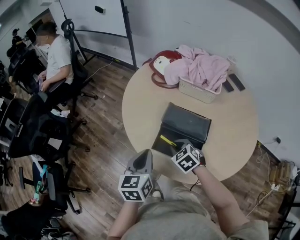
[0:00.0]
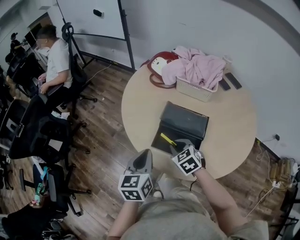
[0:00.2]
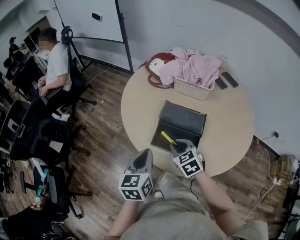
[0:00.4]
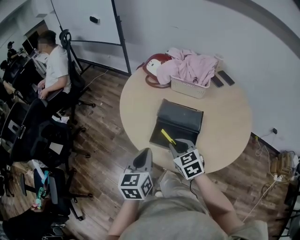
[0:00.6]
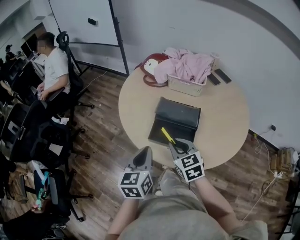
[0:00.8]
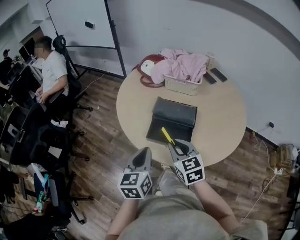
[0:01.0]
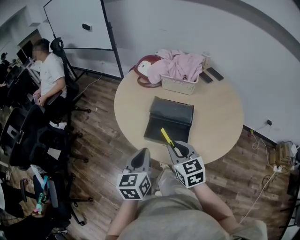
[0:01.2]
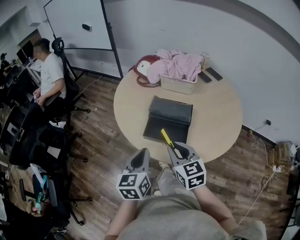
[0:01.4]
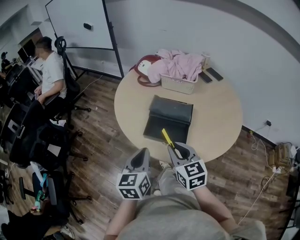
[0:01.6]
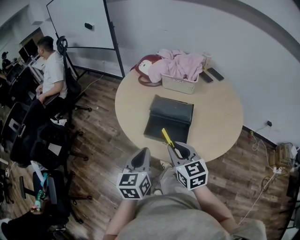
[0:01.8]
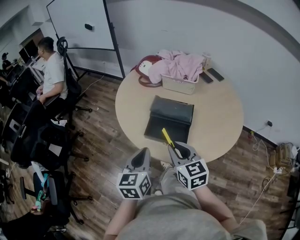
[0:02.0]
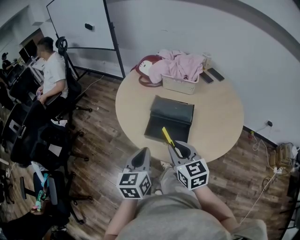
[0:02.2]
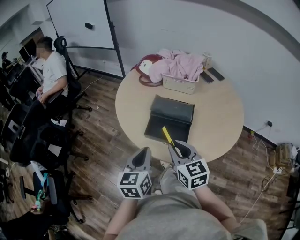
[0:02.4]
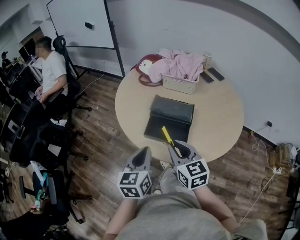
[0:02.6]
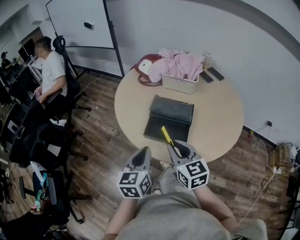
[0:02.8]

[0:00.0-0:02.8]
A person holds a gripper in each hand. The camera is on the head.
0:00.0 to 0:01.4: The left gripper travels backward by roughly 10 cm; the right gripper travels upward and backward by about 20 cm, and points its fingers about 30 degrees further upward.
0:01.4 to 0:02.8: There are only small adjustments of the grippers.

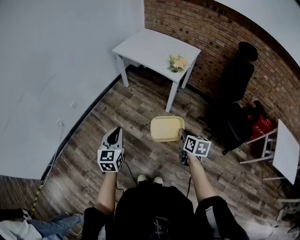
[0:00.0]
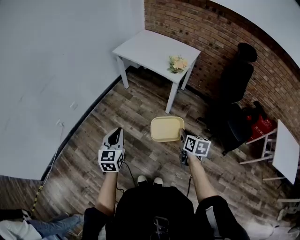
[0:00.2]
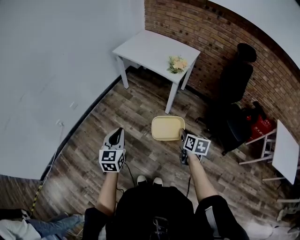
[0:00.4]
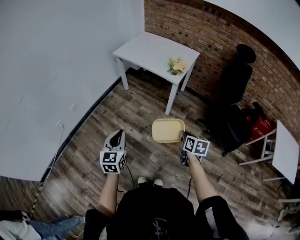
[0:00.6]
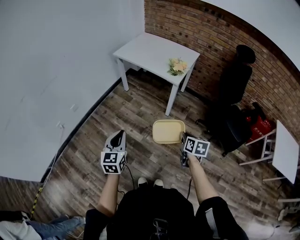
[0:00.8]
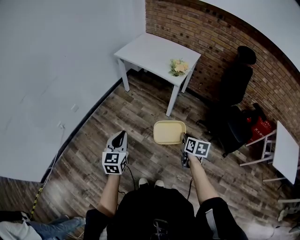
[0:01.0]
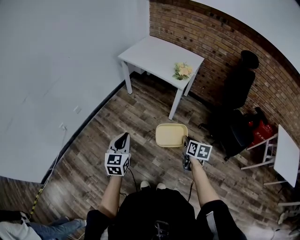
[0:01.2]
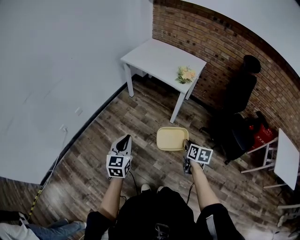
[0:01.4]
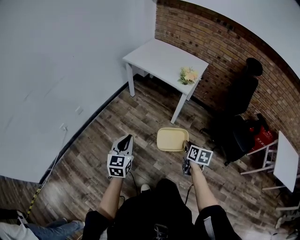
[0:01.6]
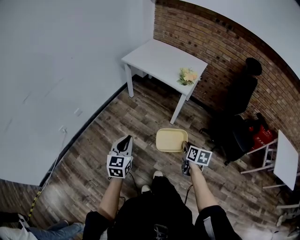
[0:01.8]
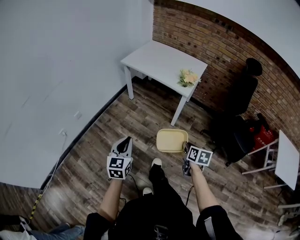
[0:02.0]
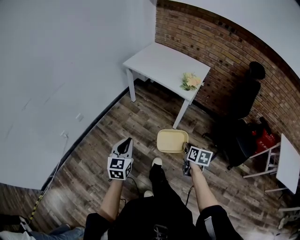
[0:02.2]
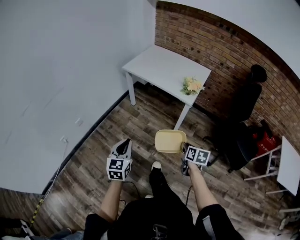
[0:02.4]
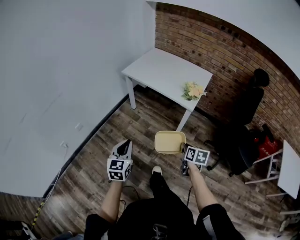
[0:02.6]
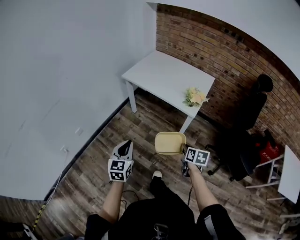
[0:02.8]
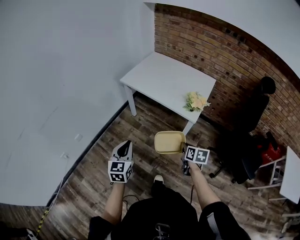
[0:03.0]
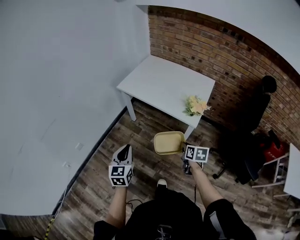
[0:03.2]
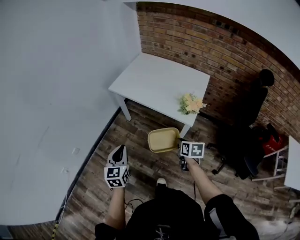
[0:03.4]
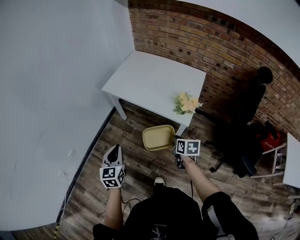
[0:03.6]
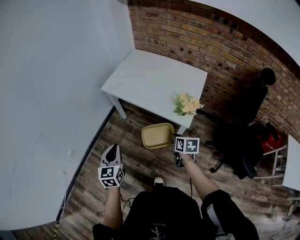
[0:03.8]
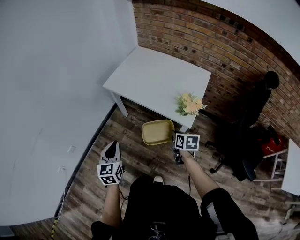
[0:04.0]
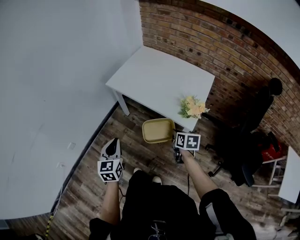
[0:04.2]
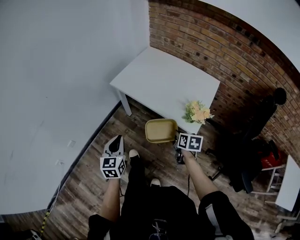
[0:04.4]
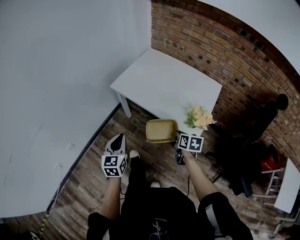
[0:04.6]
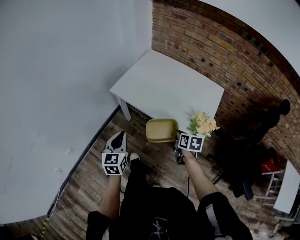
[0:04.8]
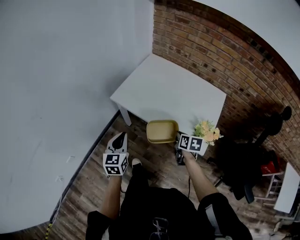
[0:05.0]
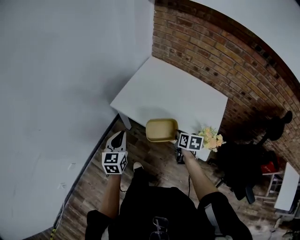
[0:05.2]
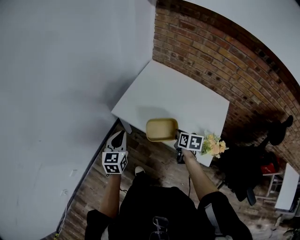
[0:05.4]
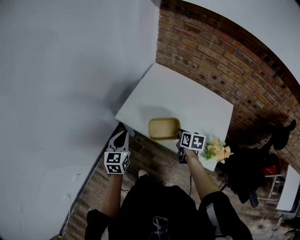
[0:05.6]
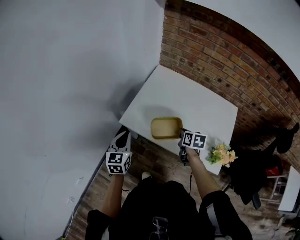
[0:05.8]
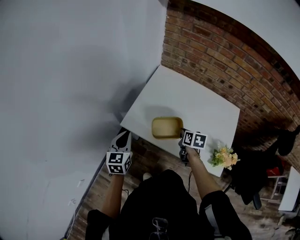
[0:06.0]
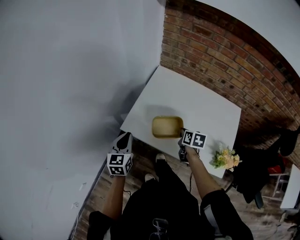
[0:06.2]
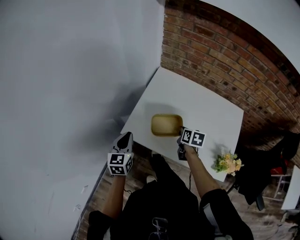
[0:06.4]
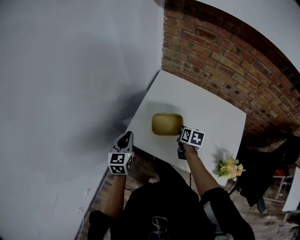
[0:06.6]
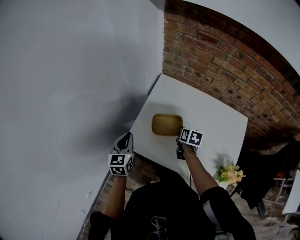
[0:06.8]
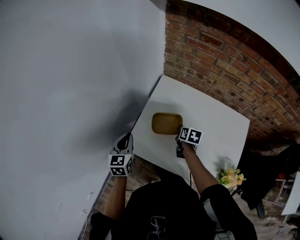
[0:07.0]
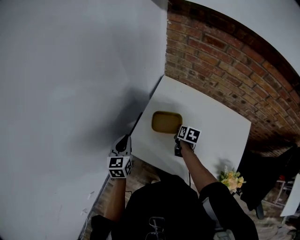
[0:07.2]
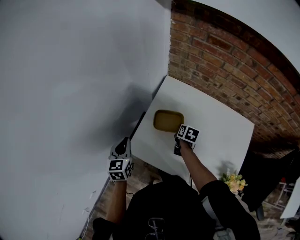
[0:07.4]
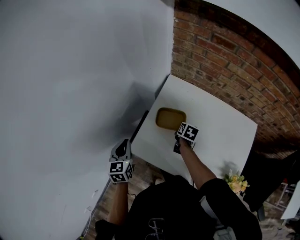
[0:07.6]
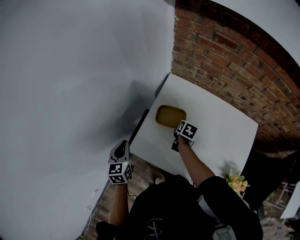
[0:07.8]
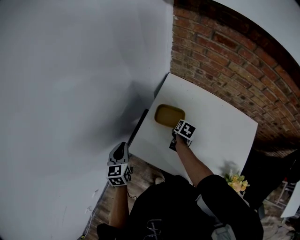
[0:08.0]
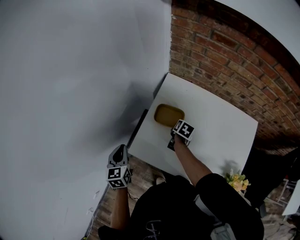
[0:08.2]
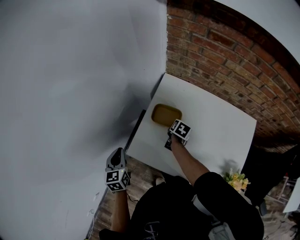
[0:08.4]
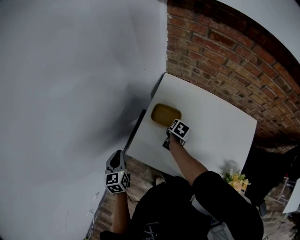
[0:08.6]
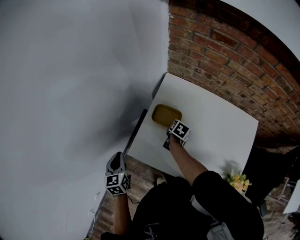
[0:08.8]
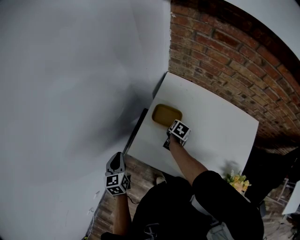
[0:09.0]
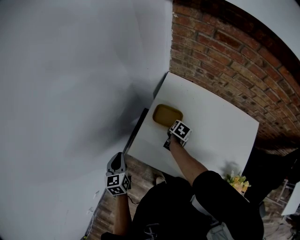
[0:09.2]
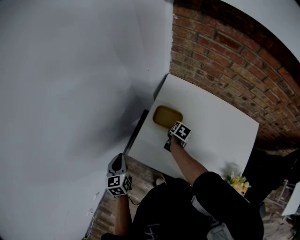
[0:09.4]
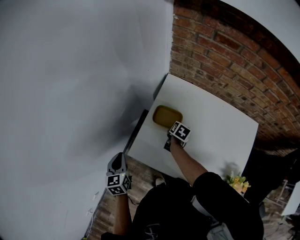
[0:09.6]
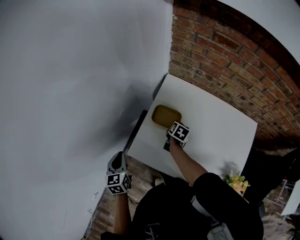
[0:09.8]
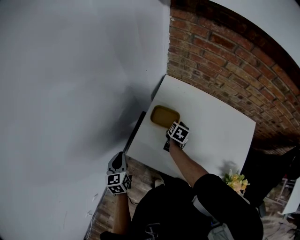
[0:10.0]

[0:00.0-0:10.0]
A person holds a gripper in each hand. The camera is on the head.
0:00.0 to 0:01.4: The grippers move only a little.
0:01.4 to 0:02.8: The grippers both shift forward by roughly 20 cm.
0:02.8 to 0:04.2: The two grippers go approximately 25 cm forward.
0:04.2 to 0:05.8: Both grippers move forward, about 40 cm.
0:05.8 to 0:07.2: Both grippers travel together forward, about 20 cm.
0:07.2 to 0:08.6: The left gripper moves to the left, about 5 cm; the right gripper moves downward, approximately 5 cm.
0:08.6 to 0:10.0: The grippers stay close to where they were, moving slightly.

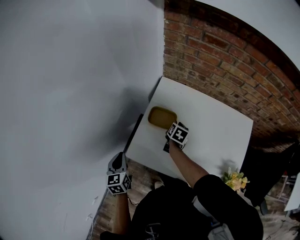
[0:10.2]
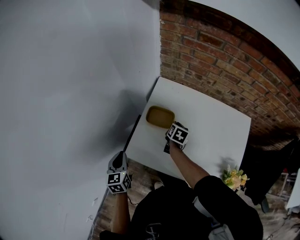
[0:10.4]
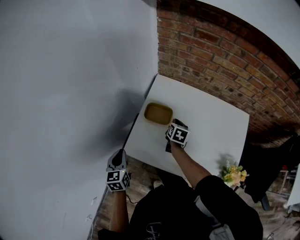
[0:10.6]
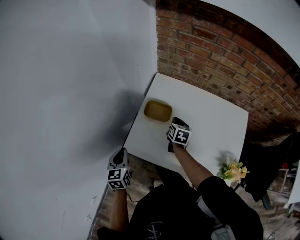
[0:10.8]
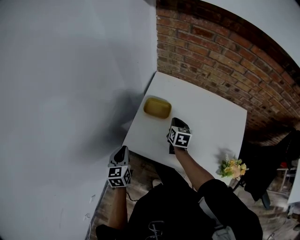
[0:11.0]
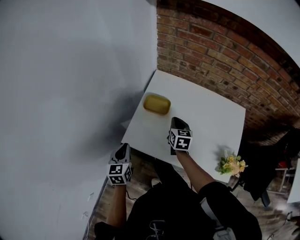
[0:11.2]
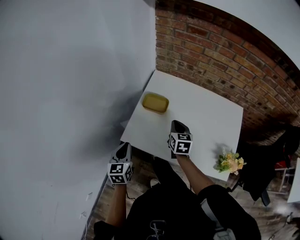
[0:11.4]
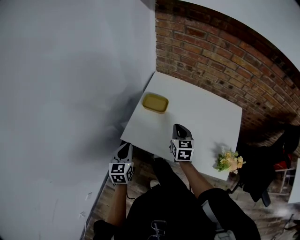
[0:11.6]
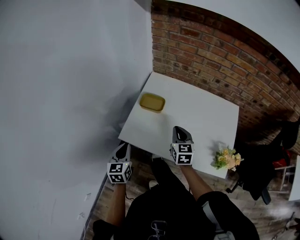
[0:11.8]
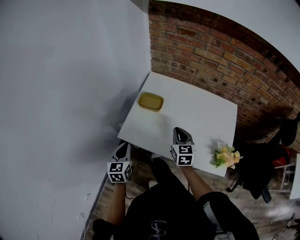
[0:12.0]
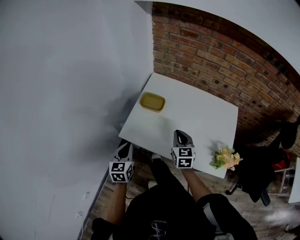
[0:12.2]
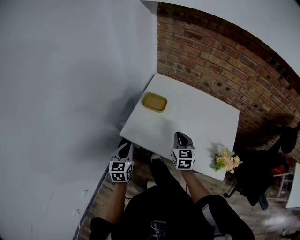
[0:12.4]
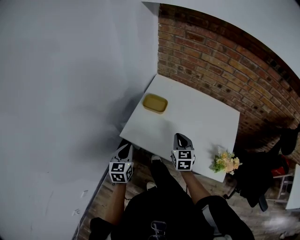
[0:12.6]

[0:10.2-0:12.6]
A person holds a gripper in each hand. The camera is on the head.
0:10.2 to 0:11.4: The right gripper moves backward and upward, about 15 cm, and changes its angle by about 30 degrees. Meanwhile the left gripper travels backward and to the right by about 10 cm.
0:11.4 to 0:12.6: The right gripper heads backward, covering approximately 10 cm. Meanwhile the left gripper travels backward by roughly 5 cm.

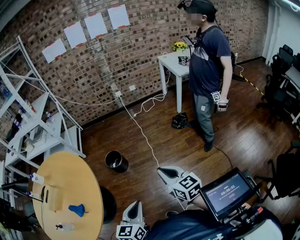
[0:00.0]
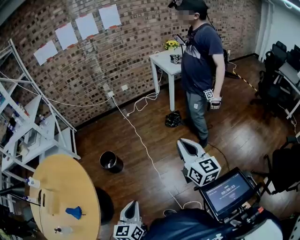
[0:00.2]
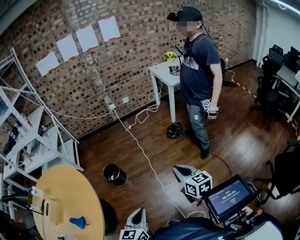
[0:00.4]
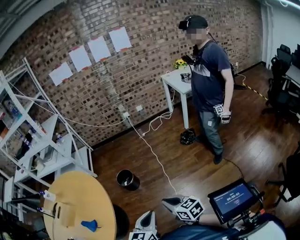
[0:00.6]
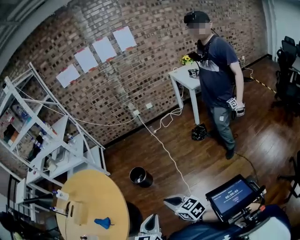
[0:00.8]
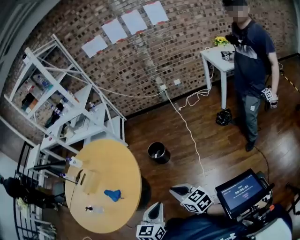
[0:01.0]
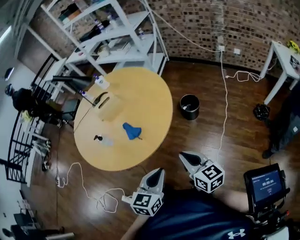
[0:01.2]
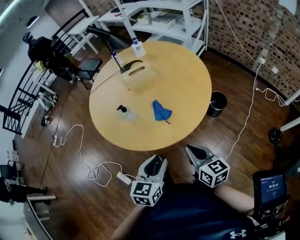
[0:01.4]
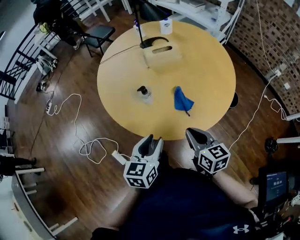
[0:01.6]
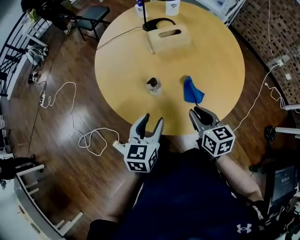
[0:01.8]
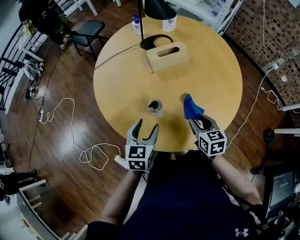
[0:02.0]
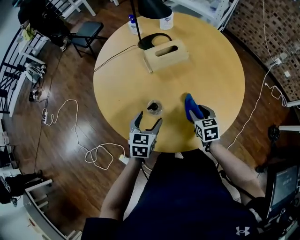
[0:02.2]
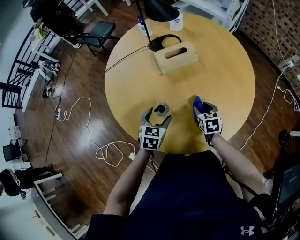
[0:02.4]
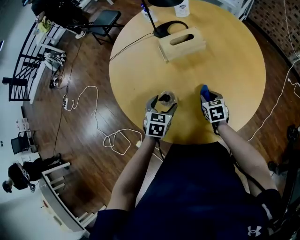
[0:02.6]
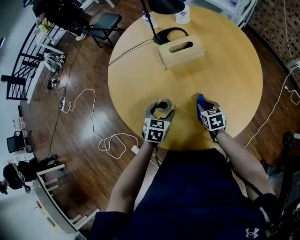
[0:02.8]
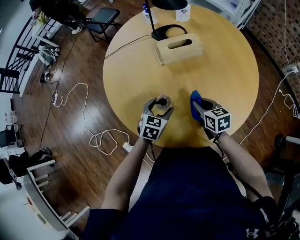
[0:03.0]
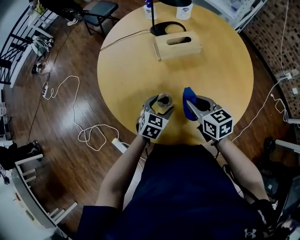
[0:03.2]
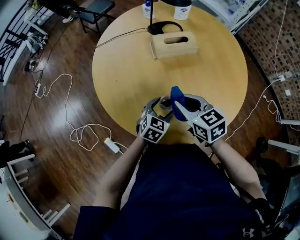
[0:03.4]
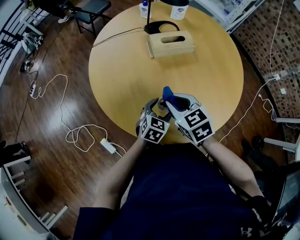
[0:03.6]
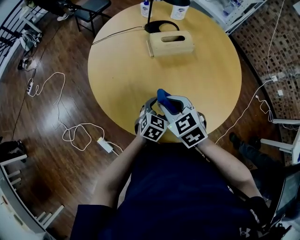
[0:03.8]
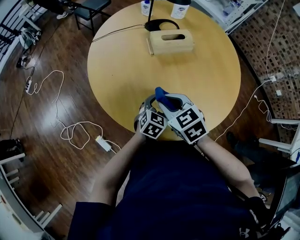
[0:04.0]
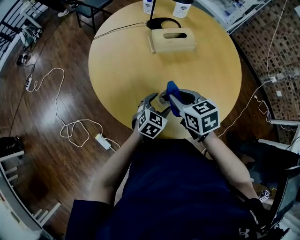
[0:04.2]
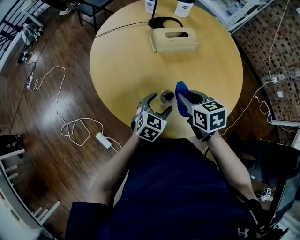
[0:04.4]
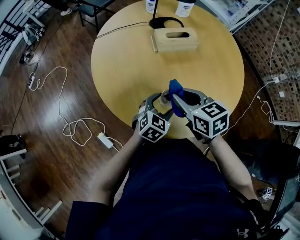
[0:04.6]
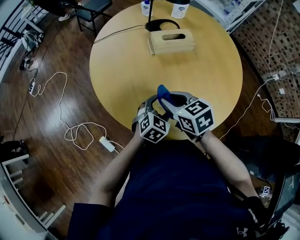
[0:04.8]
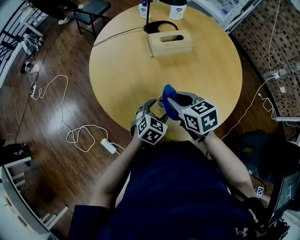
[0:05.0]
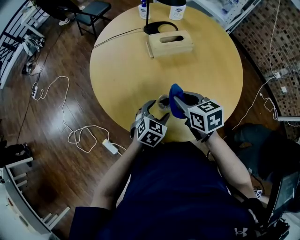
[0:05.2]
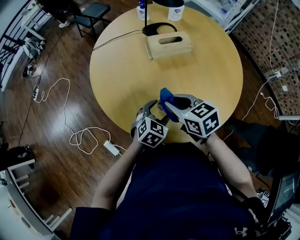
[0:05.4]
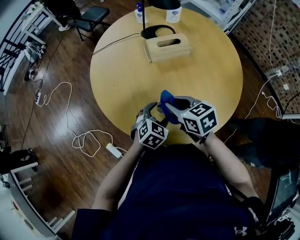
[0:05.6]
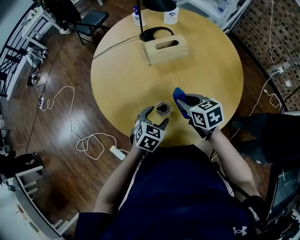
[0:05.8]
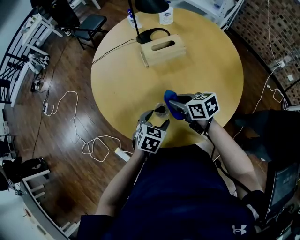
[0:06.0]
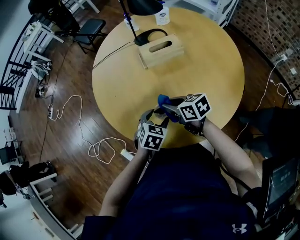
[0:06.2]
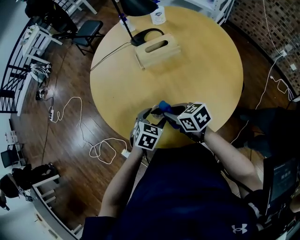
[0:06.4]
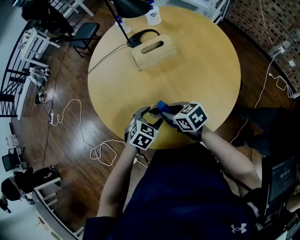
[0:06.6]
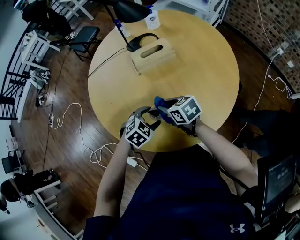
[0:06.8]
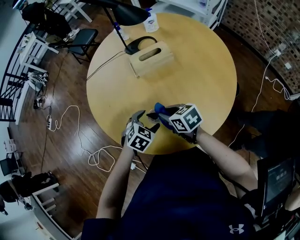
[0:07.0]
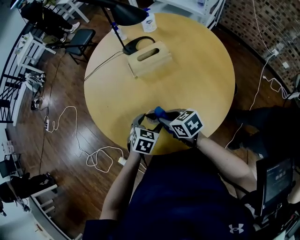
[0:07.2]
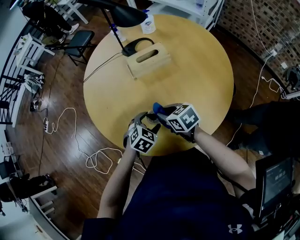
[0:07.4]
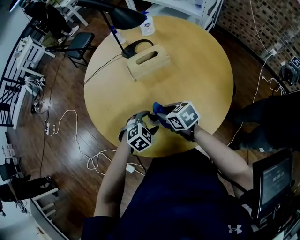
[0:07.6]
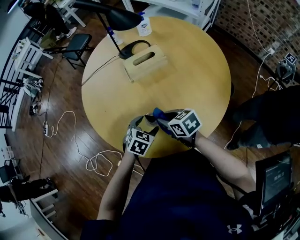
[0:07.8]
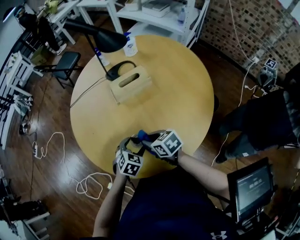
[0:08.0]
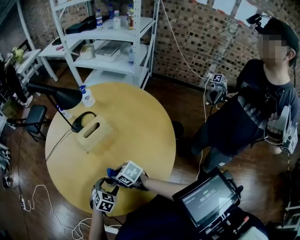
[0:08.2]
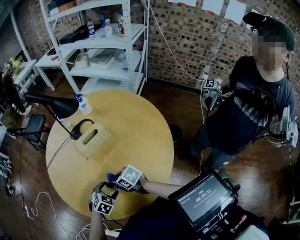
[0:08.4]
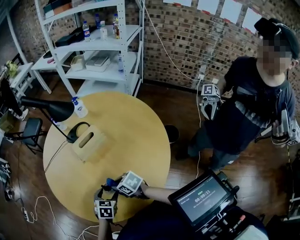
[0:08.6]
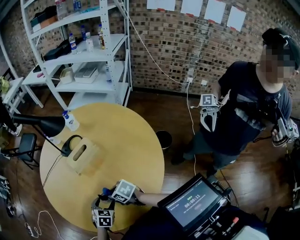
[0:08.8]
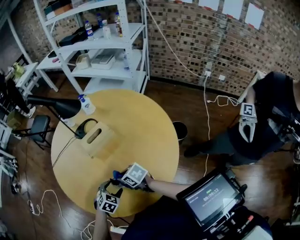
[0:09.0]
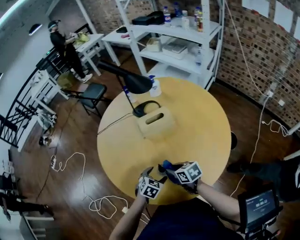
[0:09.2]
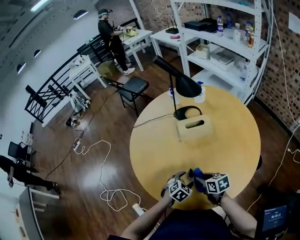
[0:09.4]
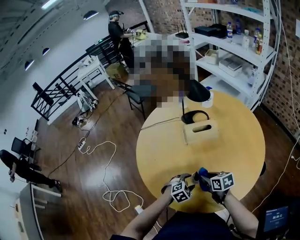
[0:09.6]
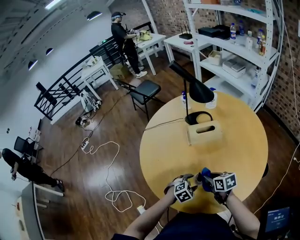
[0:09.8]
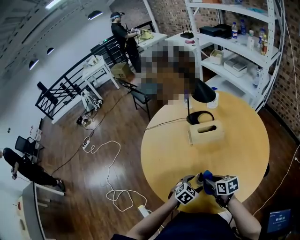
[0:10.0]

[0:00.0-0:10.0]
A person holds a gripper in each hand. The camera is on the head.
0:00.0 to 0:01.4: The left gripper moves approximately 35 cm, and turns by about 50 degrees, while the right gripper moves some 40 cm, and turns by about 50 degrees.
0:01.4 to 0:02.8: The right gripper shifts some 35 cm forward, downward and to the left, angles its fingers downward, by some 30 degrees, and opens, then closes again. Meanwhile the left gripper travels forward, to the left and downward by roughly 40 cm, rotates approximately 20 degrees, and opens up.
0:02.8 to 0:04.2: The left gripper heads to the right and backward, covering some 10 cm; the right gripper travels upward and to the left by roughly 20 cm.
0:04.2 to 0:05.8: The right gripper moves to the right, about 5 cm.
0:05.8 to 0:07.2: The right gripper moves some 5 cm.
